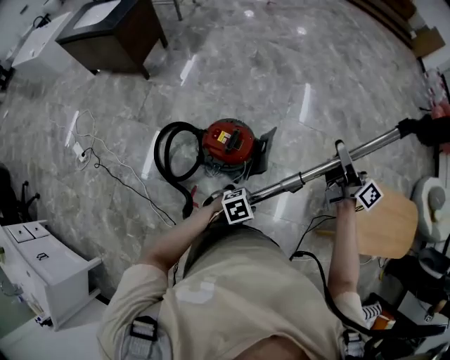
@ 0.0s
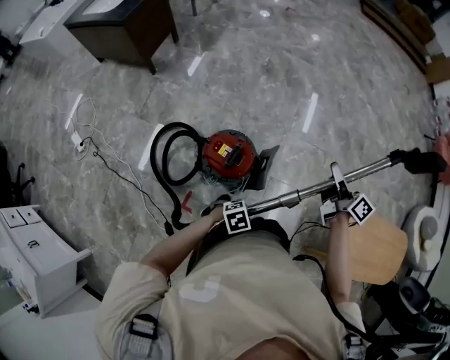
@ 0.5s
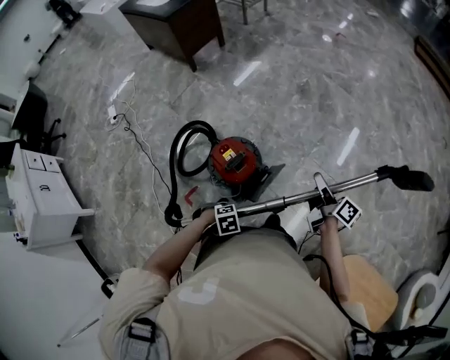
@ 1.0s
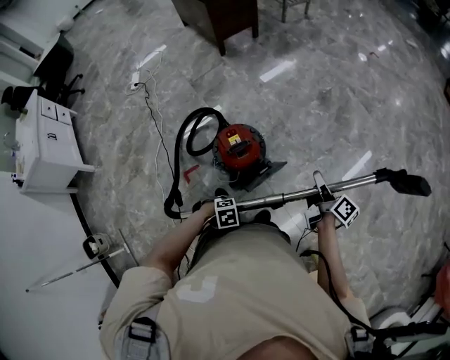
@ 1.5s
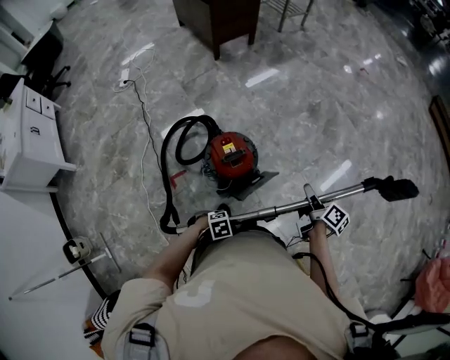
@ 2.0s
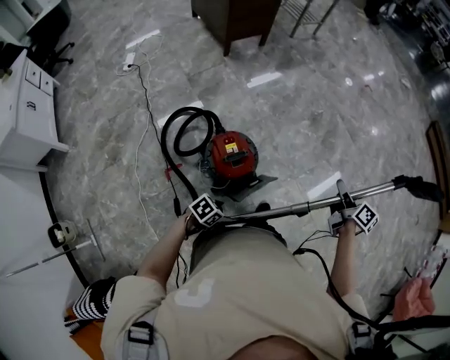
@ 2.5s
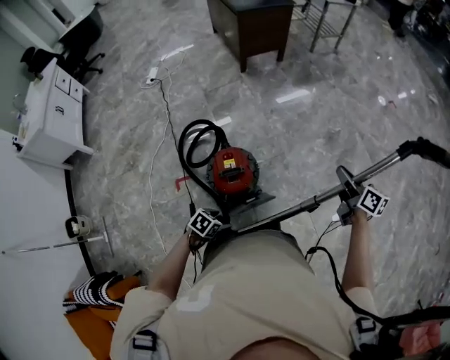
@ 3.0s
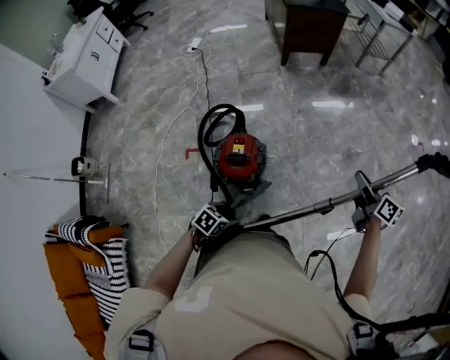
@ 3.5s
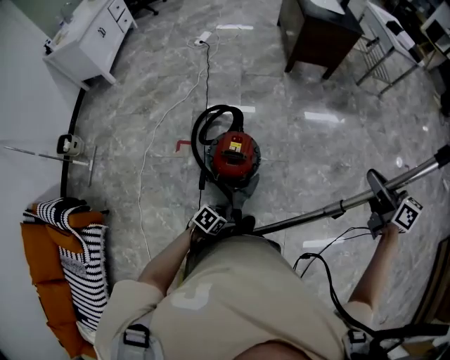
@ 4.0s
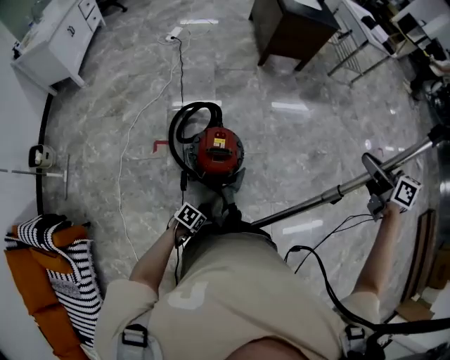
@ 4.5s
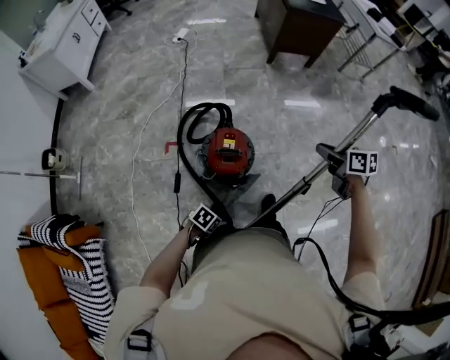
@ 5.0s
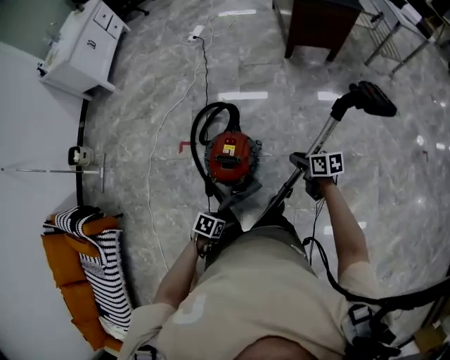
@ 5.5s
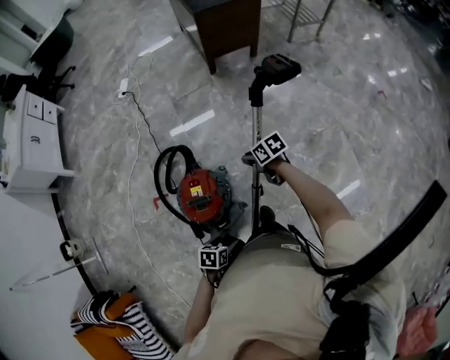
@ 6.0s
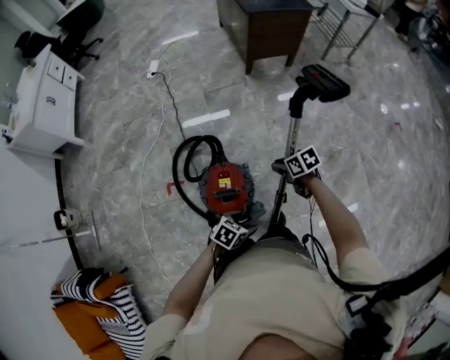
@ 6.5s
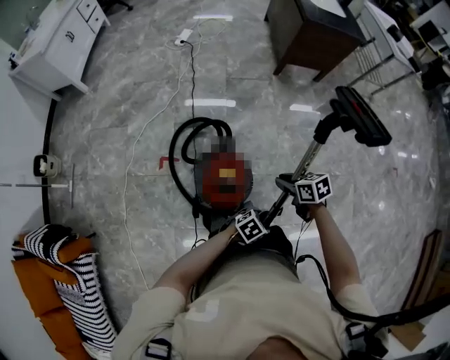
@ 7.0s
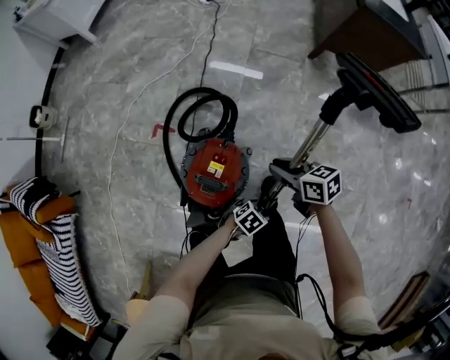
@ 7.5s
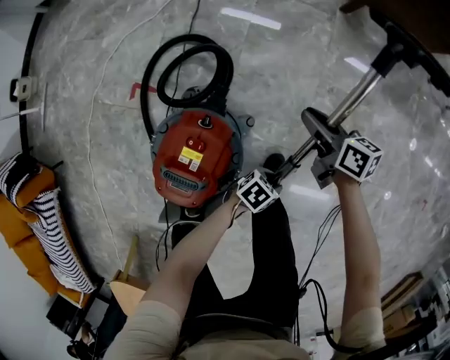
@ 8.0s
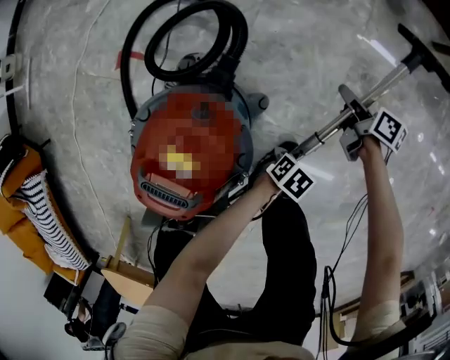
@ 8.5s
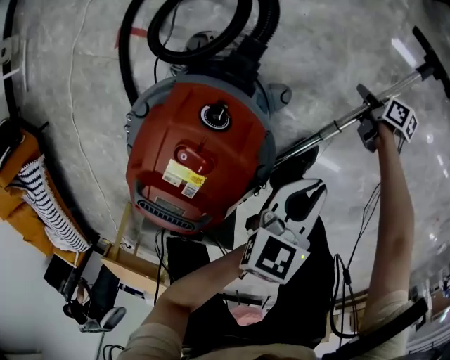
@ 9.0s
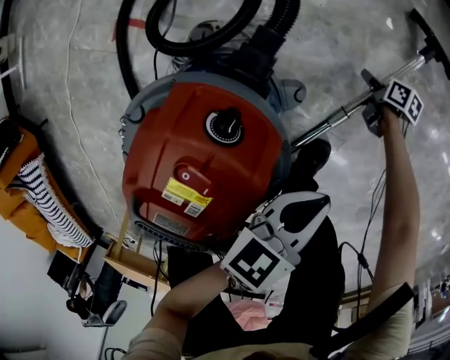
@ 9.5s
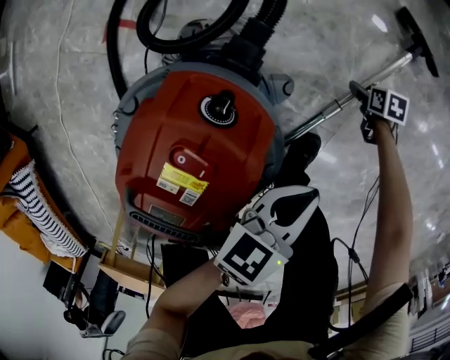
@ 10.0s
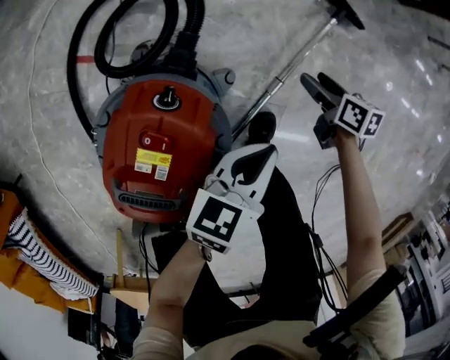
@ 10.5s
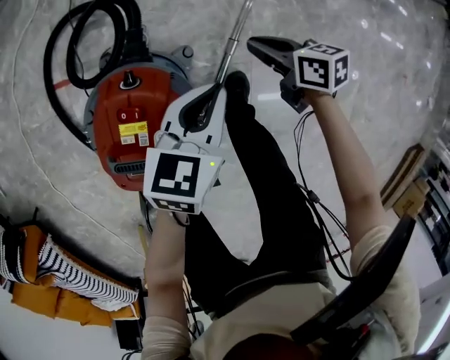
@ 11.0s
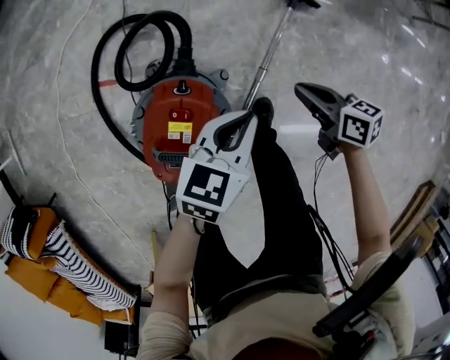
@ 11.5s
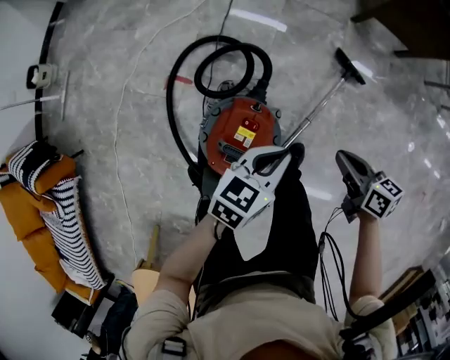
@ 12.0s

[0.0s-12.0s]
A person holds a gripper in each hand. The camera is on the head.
0.0s to 2.0s: The right gripper heads downward, covering about 20 cm, and tips its fingers downward by approximately 30 degrees. Meanwhile the left gripper ends up about 15 cm from where it was, and changes its angle by about 40 degrees.
2.0s to 4.0s: The left gripper shifts by approximately 20 cm, twists approximately 60 degrees counterclockwise, seen from behind, and opens up. Meanwhile the right gripper moves roughly 35 cm, and turns by approximately 70 degrees.
4.0s to 6.0s: The right gripper goes some 35 cm downward, and changes its angle by about 30 degrees; the left gripper ends up roughly 15 cm from where it was.
6.0s to 8.0s: The left gripper shifts by some 40 cm, and closes its fingers, while the right gripper ends up some 30 cm from where it was, and changes its angle by some 20 degrees.
8.0s to 10.0s: The left gripper travels downward and back again, roughly 15 cm each way, swivels about 40 degrees, and closes its fingers. Meanwhile the right gripper travels downward by some 40 cm, angles its fingers downward, by roughly 50 degrees, and opens up.
10.0s to 12.0s: The left gripper shifts approximately 30 cm upward, and swivels roughly 20 degrees, while the right gripper travels upward by about 60 cm, angles its fingers upward, by about 40 degrees, and closes up.

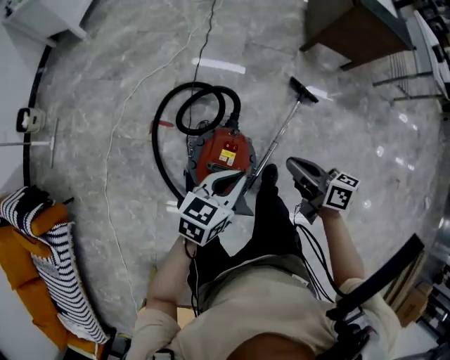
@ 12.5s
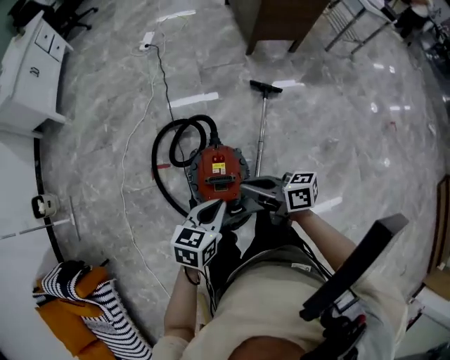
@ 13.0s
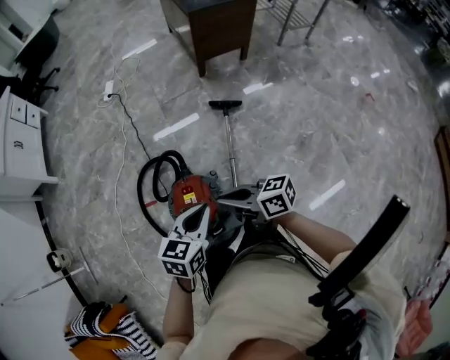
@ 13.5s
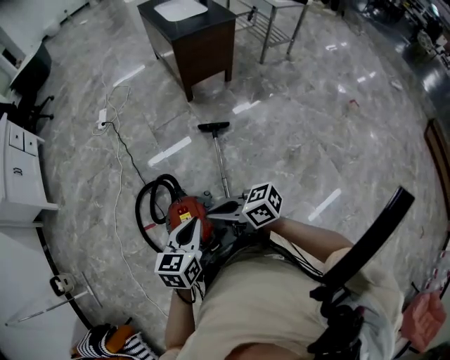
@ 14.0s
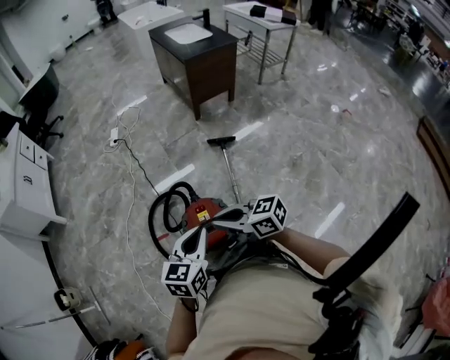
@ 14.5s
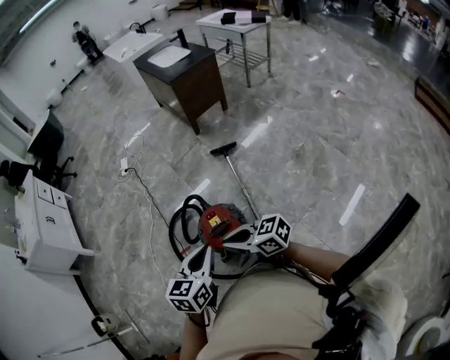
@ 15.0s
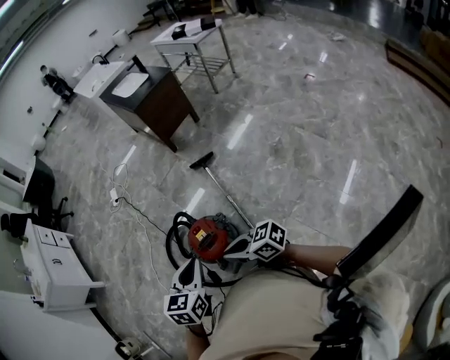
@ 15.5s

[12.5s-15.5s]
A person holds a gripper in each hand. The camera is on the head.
12.5s to 14.0s: The left gripper is displaced upward, to the right and backward by about 20 cm; the right gripper is displaced upward and backward by approximately 20 cm.
14.0s to 15.5s: The left gripper moves backward and to the left, some 20 cm. Meanwhile the right gripper heads backward, covering roughly 20 cm.

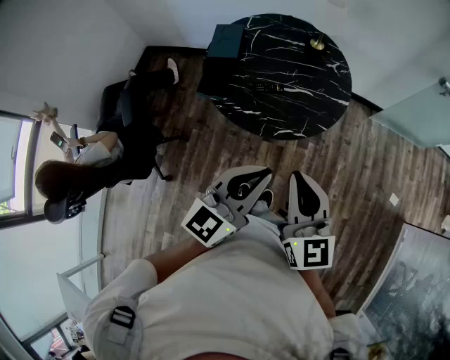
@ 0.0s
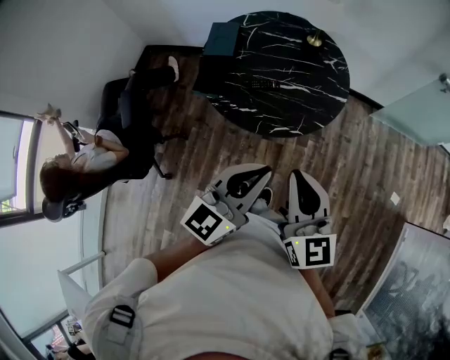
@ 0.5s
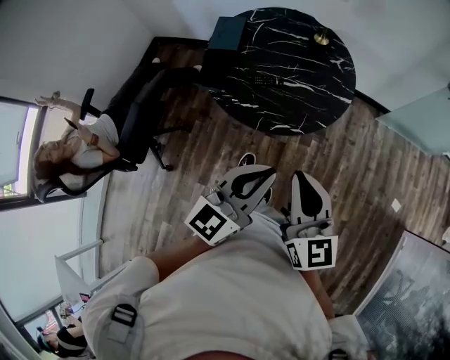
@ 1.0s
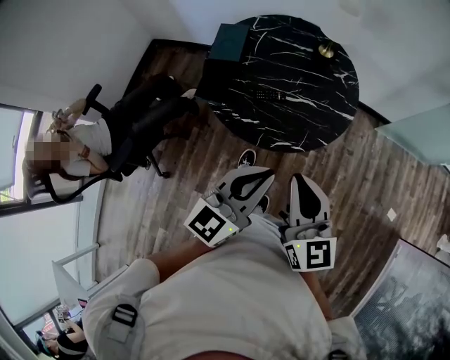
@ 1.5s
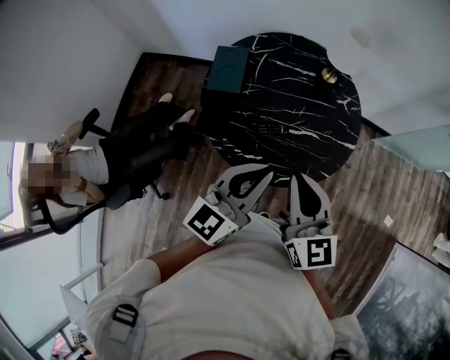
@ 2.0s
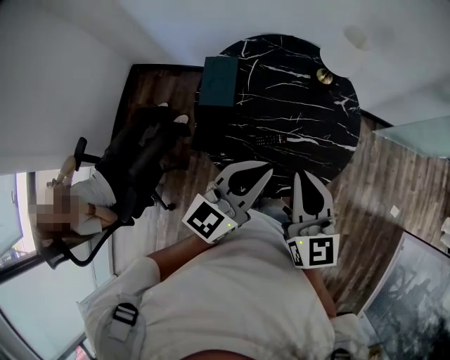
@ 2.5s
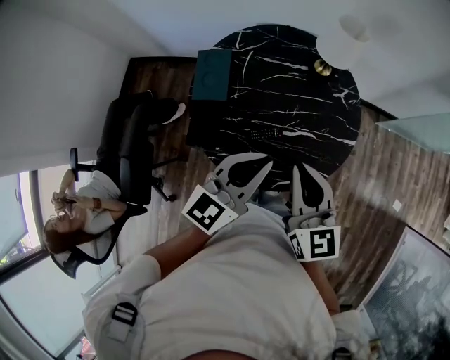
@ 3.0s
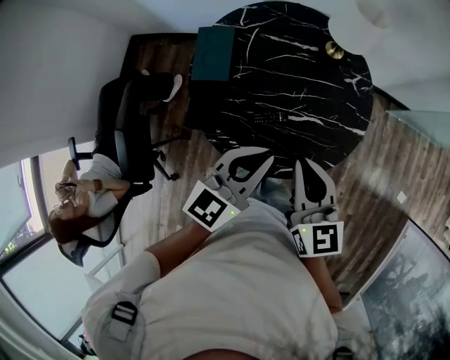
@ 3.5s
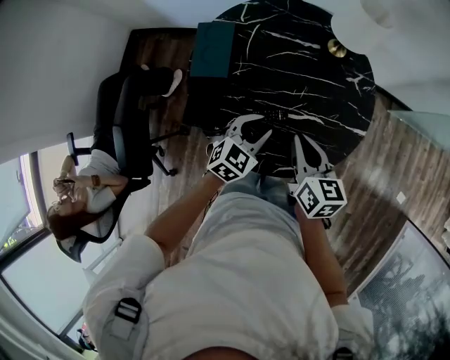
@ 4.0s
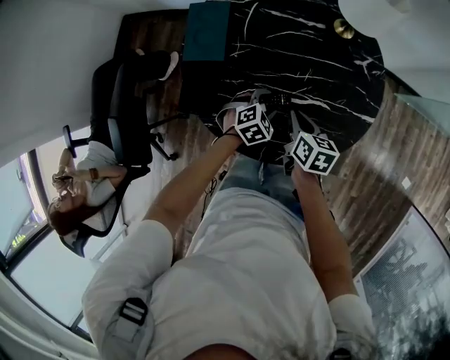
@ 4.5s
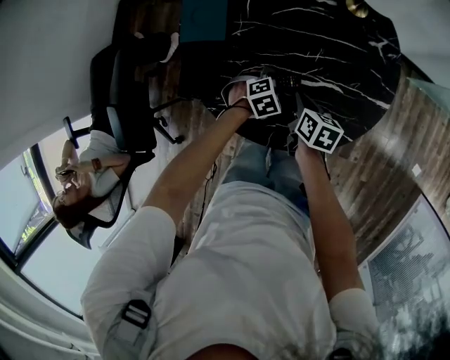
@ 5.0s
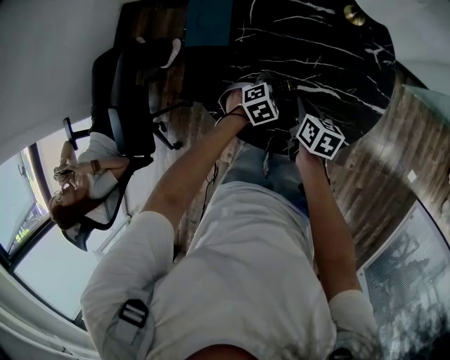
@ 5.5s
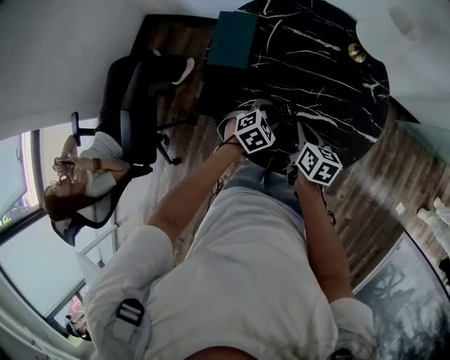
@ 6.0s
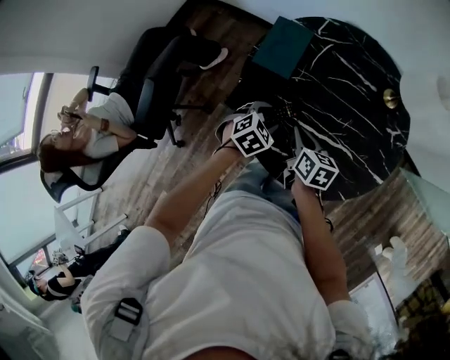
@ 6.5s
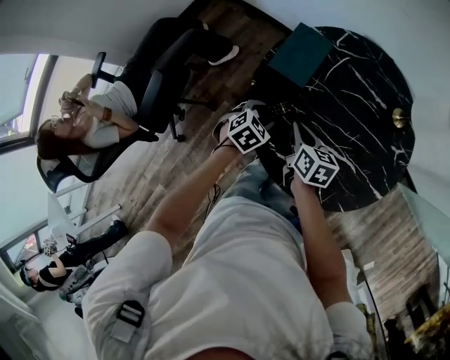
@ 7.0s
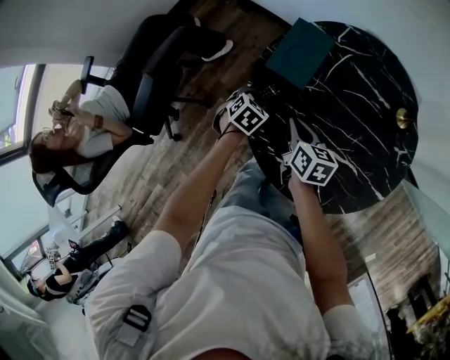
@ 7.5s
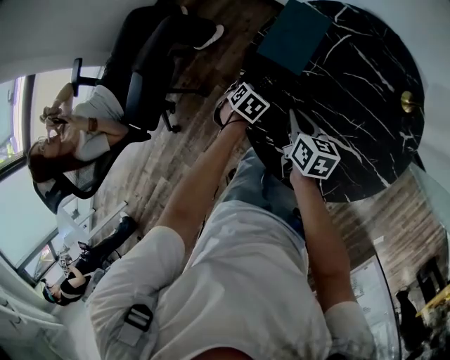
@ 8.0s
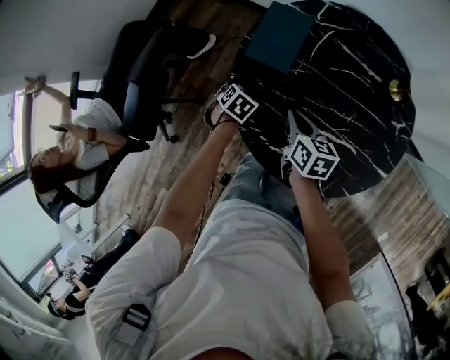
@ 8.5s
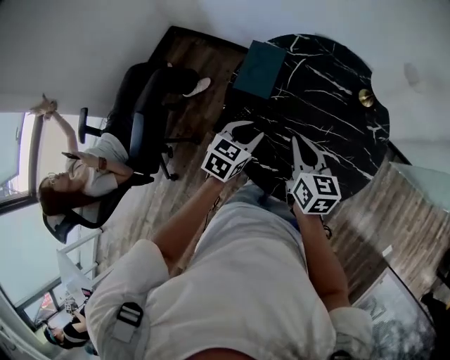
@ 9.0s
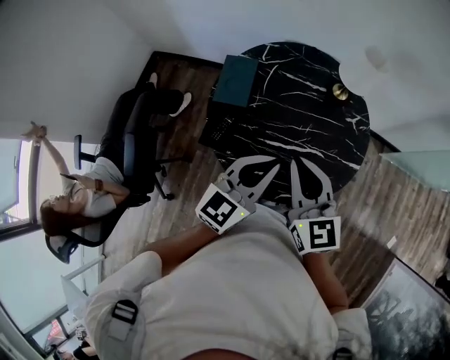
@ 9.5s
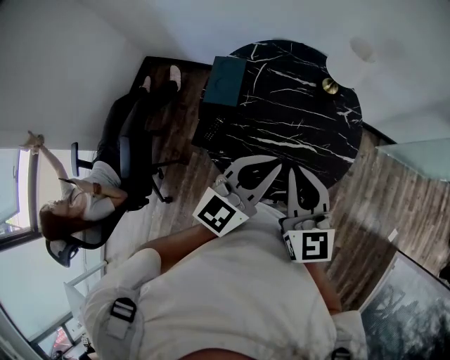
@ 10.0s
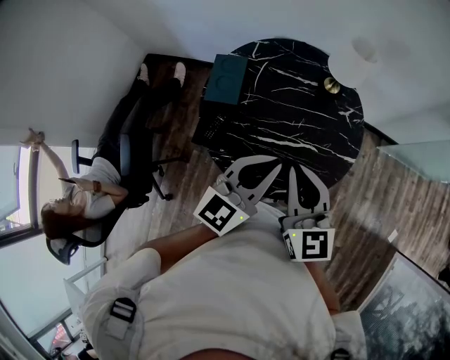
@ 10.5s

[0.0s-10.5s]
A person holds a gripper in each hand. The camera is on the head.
0.0s to 2.0s: Both grippers move forward, roughly 25 cm.
2.0s to 4.0s: Both grippers travel together downward and forward, some 25 cm. The left gripper angles its fingers downward, by some 40 degrees, and opens its fingers, while the right gripper swivels about 30 degrees.
4.0s to 6.5s: The left gripper goes downward and returns, some 20 cm each way, turns by approximately 20 degrees, and opens its fingers; the right gripper moves approximately 20 cm, and swivels approximately 20 degrees.
6.5s to 8.5s: The right gripper shifts some 5 cm forward. The left gripper is displaced downward, to the left and forward by about 15 cm, and changes its angle by some 20 degrees.
8.5s to 10.5s: Both grippers travel together upward and to the right, approximately 40 cm. The left gripper angles its fingers upward, by roughly 70 degrees, and closes its fingers, while the right gripper rotates some 50 degrees.
